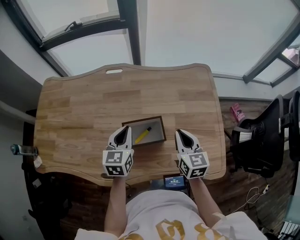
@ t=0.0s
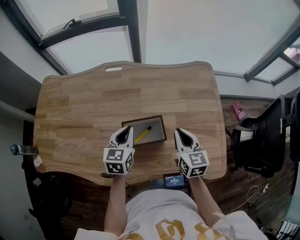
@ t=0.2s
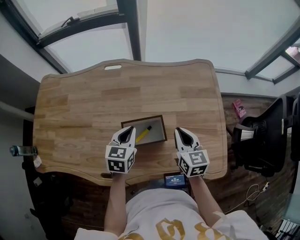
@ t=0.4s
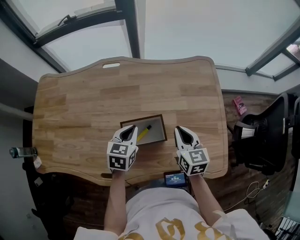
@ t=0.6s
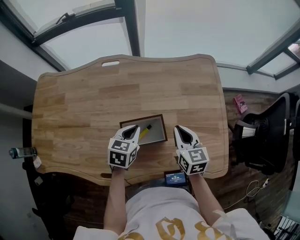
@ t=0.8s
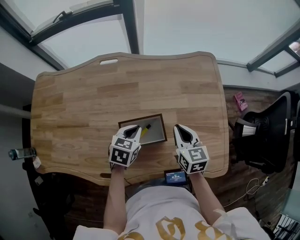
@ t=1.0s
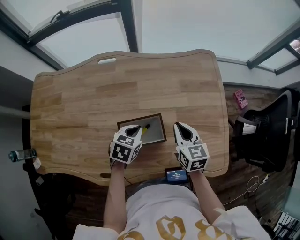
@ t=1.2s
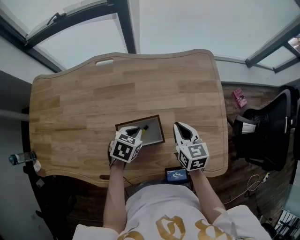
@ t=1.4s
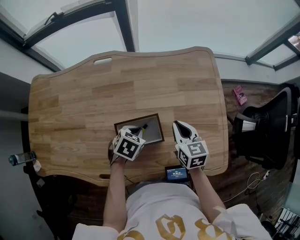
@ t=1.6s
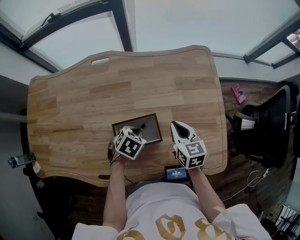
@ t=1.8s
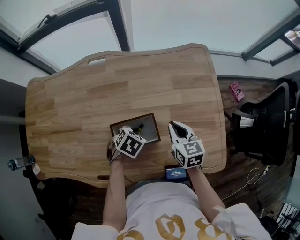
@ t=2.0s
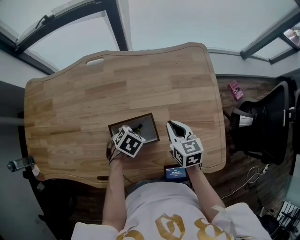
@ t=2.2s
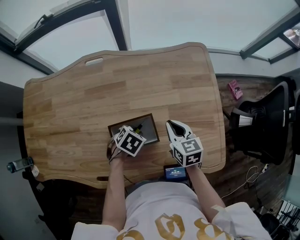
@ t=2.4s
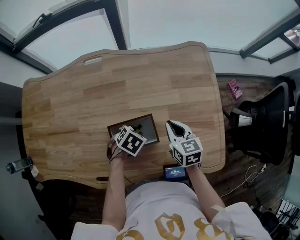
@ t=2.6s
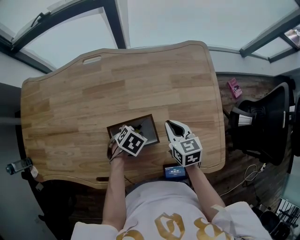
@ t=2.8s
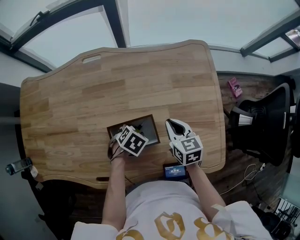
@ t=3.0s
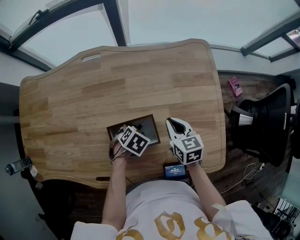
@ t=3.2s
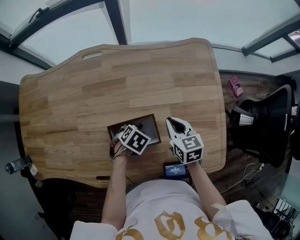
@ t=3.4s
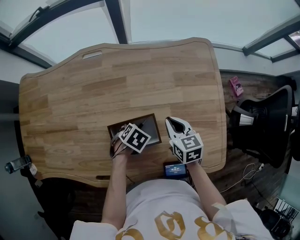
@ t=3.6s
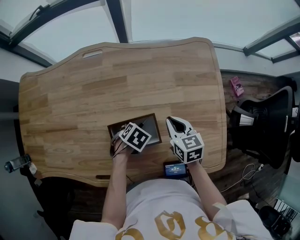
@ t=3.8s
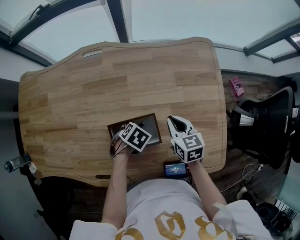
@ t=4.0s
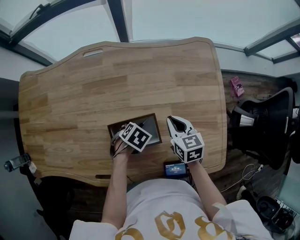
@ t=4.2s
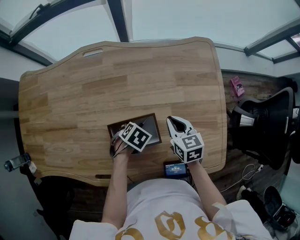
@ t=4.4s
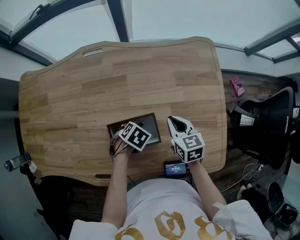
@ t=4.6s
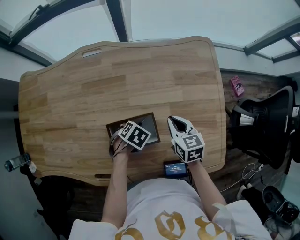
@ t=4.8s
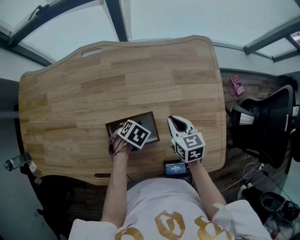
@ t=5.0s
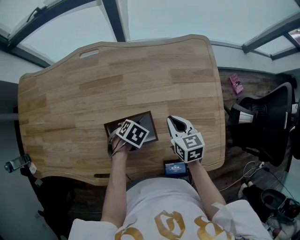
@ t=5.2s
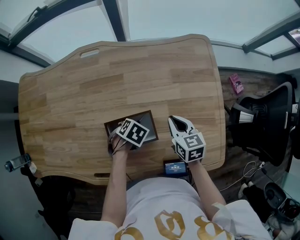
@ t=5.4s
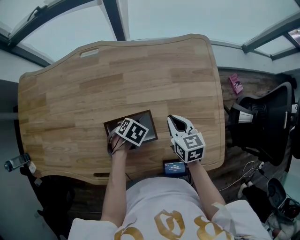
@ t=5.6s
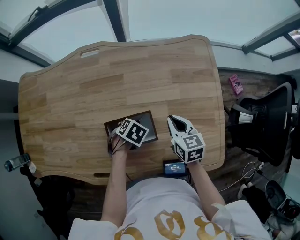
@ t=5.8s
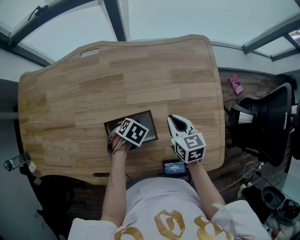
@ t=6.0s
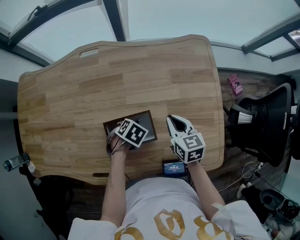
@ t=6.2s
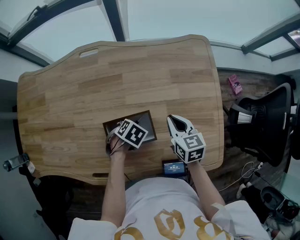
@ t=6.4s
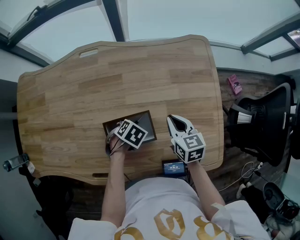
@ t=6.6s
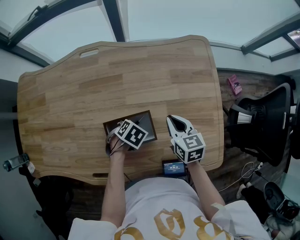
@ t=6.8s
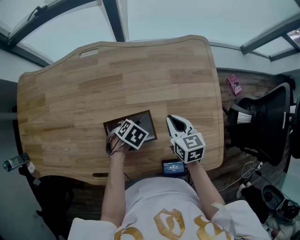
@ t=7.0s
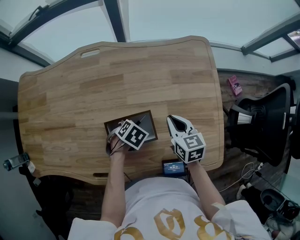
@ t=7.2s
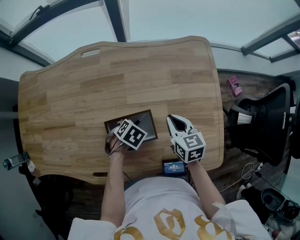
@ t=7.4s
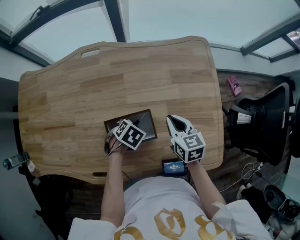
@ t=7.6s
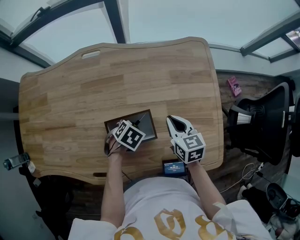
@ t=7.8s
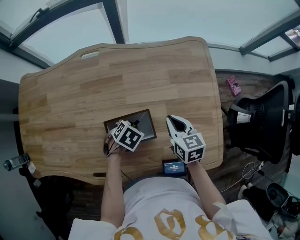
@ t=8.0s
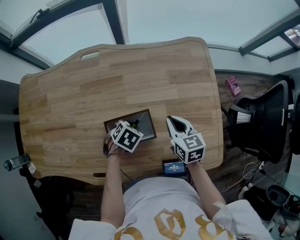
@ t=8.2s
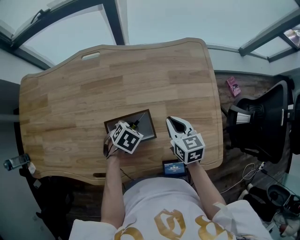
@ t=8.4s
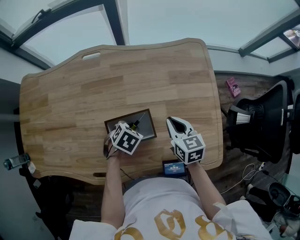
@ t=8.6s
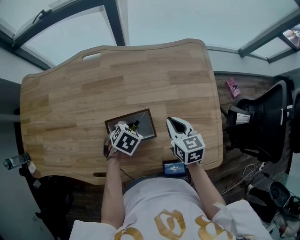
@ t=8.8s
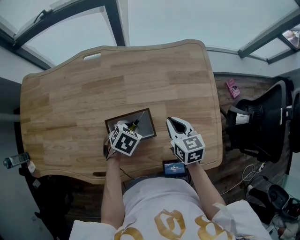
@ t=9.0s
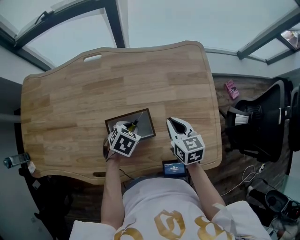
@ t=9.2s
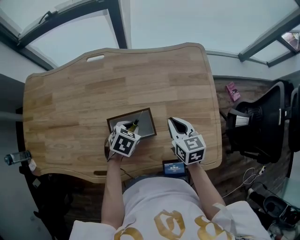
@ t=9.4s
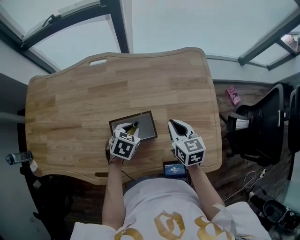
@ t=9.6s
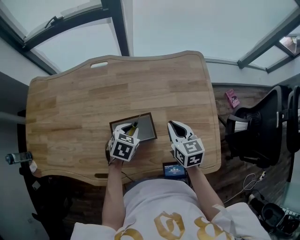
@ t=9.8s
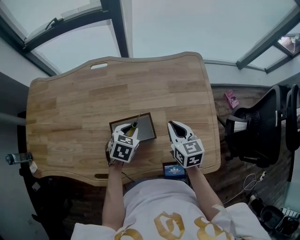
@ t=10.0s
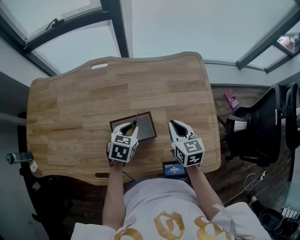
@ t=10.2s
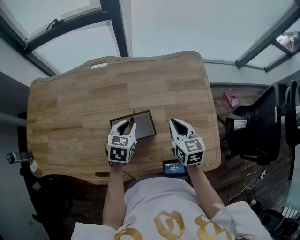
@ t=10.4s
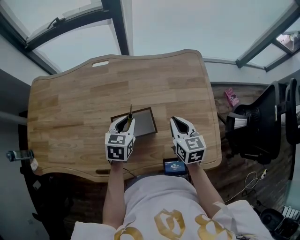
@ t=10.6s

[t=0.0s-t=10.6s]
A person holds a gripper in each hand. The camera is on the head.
t=0.0s to t=1.6s: The left gripper moves downward and to the right, some 15 cm, and tilts its fingers roughly 40 degrees downward, while the right gripper is displaced downward and forward by about 10 cm.
t=1.6s to t=3.0s: The left gripper moves some 5 cm, and opens up.
t=3.0s to t=9.0s: The grippers make only small movements.
t=9.0s to t=10.6s: The left gripper heads upward, covering roughly 10 cm, and rotates about 40 degrees. Meanwhile the right gripper goes roughly 5 cm upward.

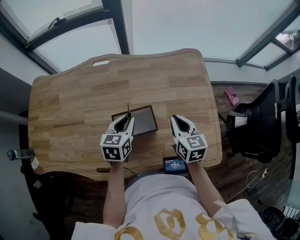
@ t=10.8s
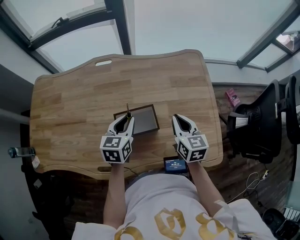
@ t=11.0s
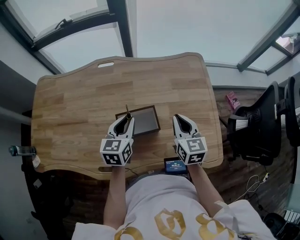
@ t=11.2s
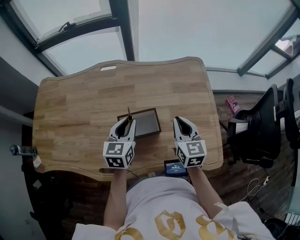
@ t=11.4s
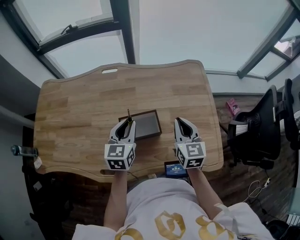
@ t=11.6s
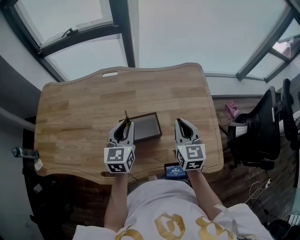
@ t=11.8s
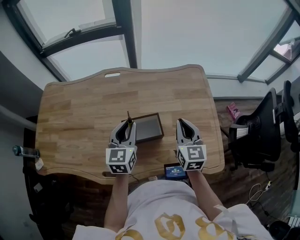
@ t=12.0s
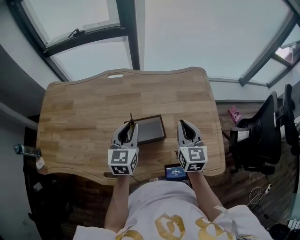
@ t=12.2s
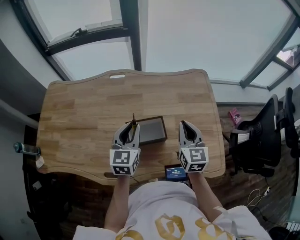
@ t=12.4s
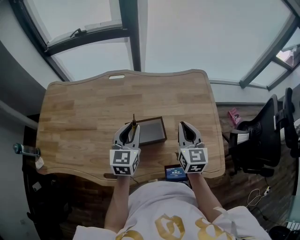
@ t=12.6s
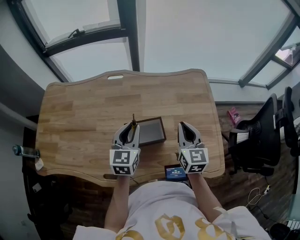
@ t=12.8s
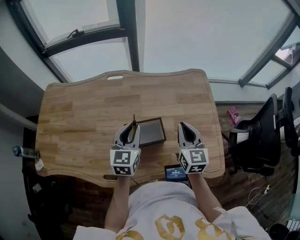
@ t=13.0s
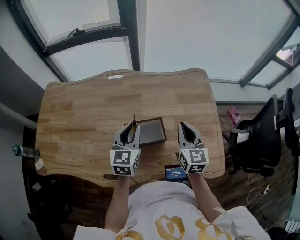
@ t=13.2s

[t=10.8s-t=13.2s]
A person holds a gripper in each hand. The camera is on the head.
t=10.8s to t=12.0s: Both grippers move upward, approximately 10 cm. The left gripper turns by roughly 20 degrees.
t=12.0s to t=13.2s: Both grippers stay put.

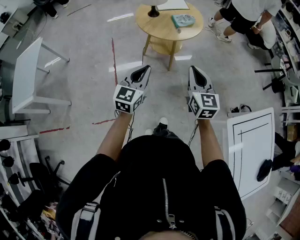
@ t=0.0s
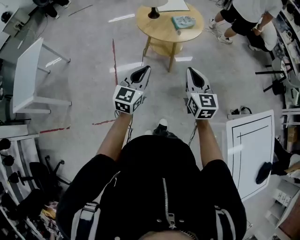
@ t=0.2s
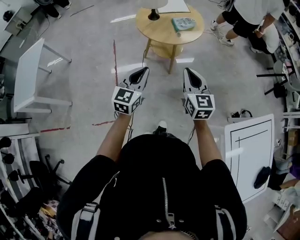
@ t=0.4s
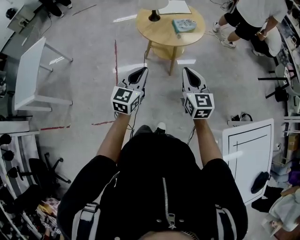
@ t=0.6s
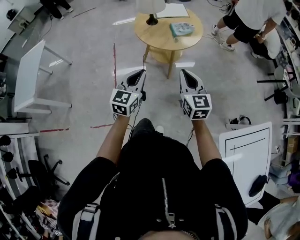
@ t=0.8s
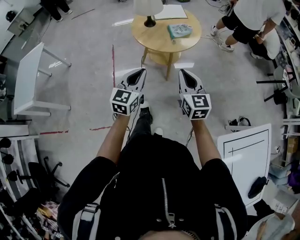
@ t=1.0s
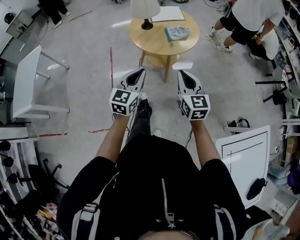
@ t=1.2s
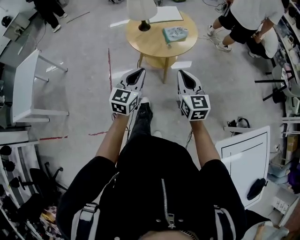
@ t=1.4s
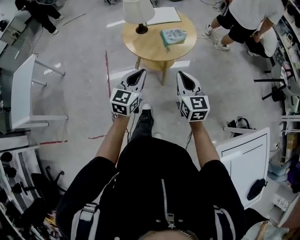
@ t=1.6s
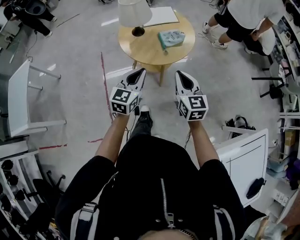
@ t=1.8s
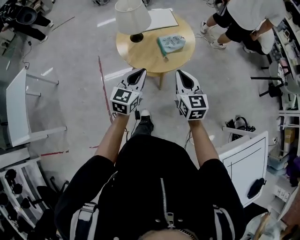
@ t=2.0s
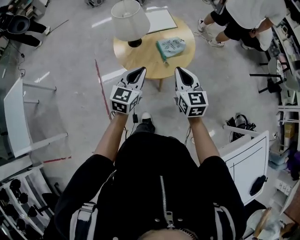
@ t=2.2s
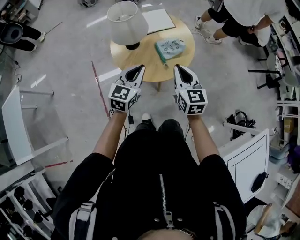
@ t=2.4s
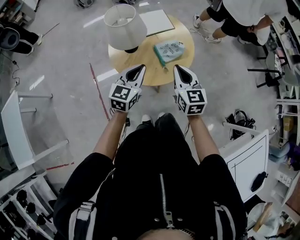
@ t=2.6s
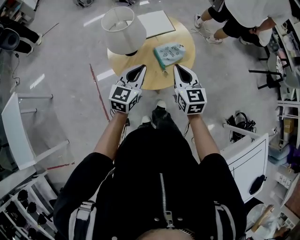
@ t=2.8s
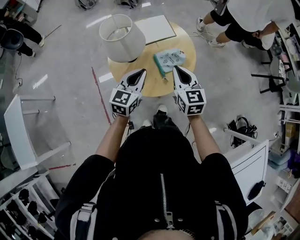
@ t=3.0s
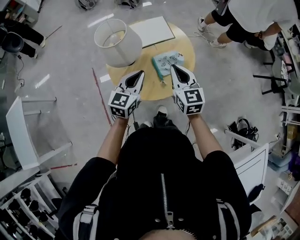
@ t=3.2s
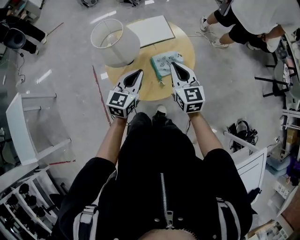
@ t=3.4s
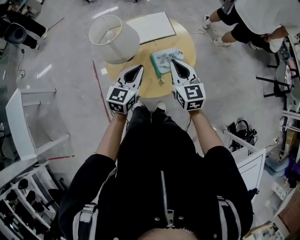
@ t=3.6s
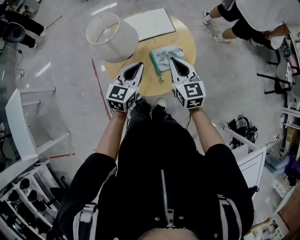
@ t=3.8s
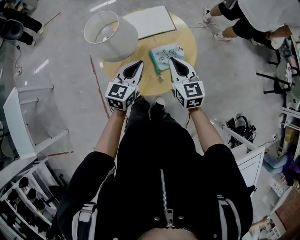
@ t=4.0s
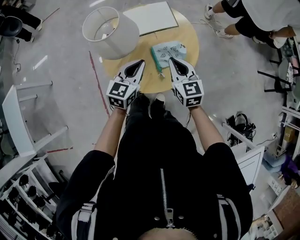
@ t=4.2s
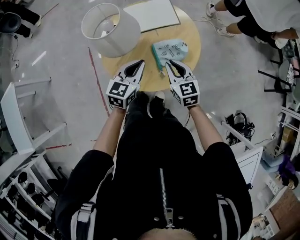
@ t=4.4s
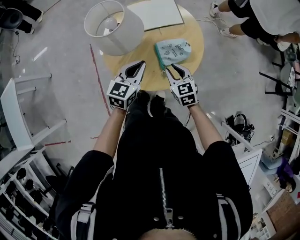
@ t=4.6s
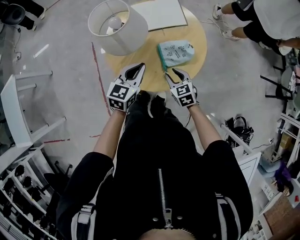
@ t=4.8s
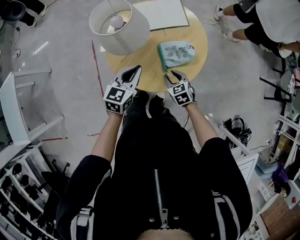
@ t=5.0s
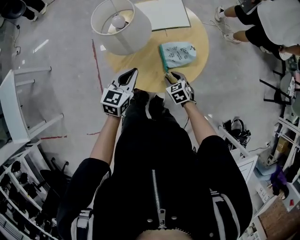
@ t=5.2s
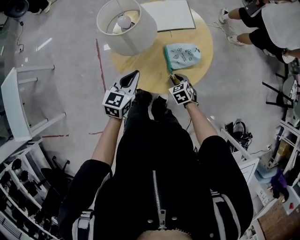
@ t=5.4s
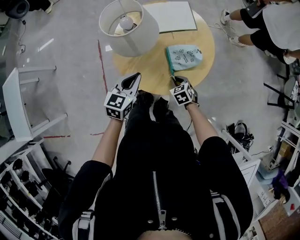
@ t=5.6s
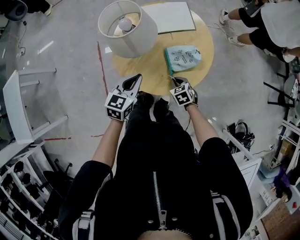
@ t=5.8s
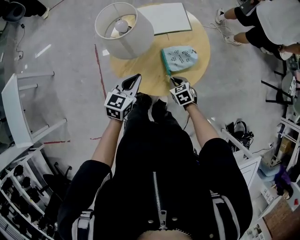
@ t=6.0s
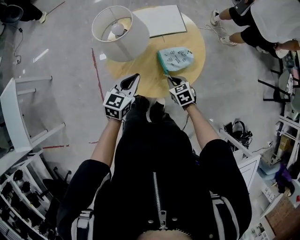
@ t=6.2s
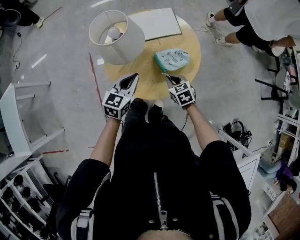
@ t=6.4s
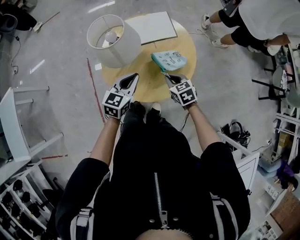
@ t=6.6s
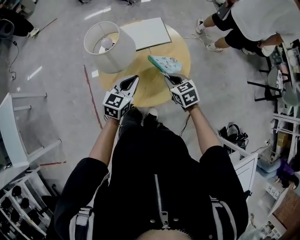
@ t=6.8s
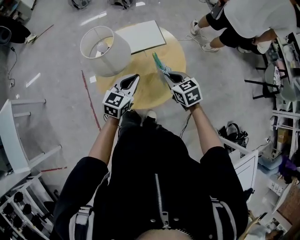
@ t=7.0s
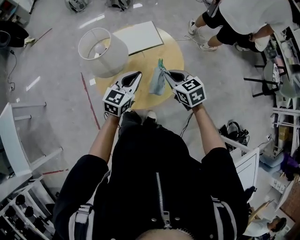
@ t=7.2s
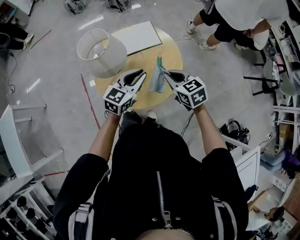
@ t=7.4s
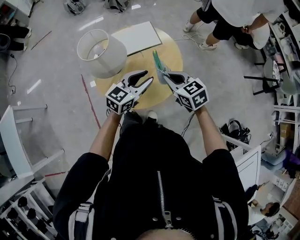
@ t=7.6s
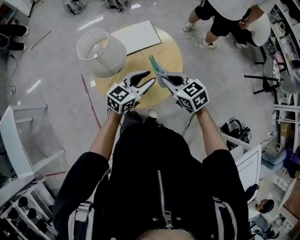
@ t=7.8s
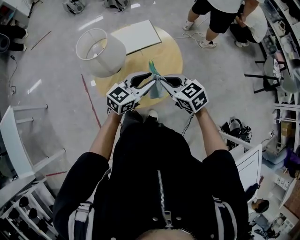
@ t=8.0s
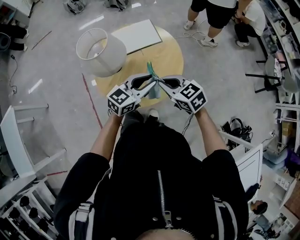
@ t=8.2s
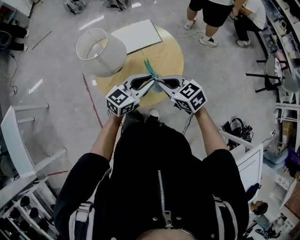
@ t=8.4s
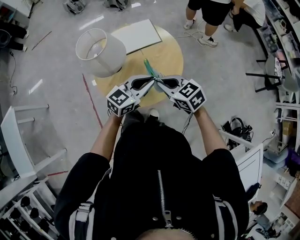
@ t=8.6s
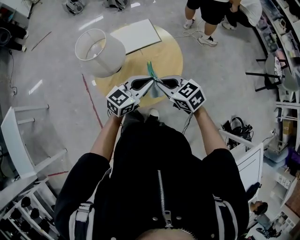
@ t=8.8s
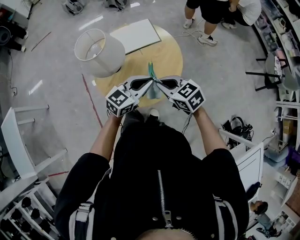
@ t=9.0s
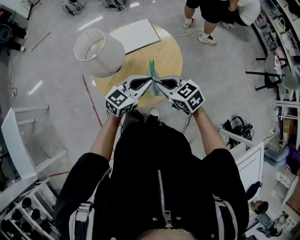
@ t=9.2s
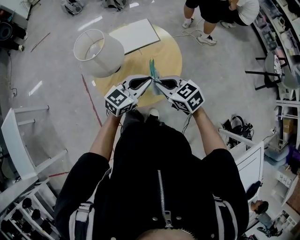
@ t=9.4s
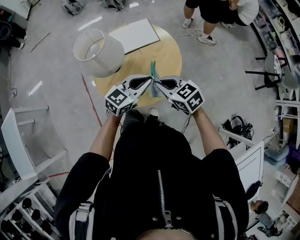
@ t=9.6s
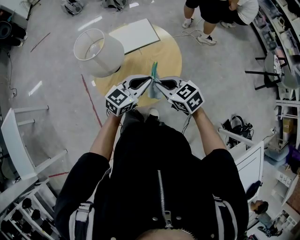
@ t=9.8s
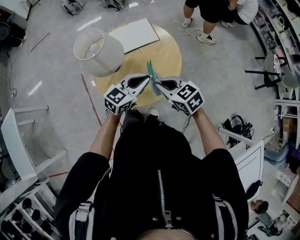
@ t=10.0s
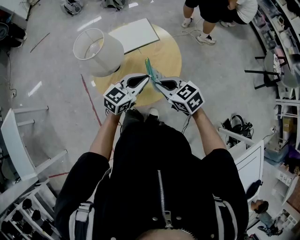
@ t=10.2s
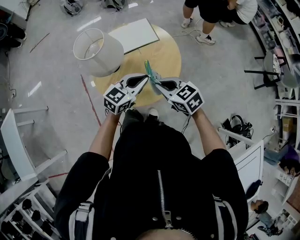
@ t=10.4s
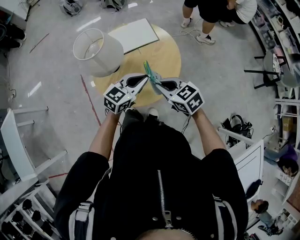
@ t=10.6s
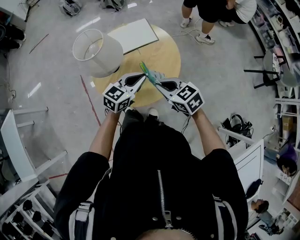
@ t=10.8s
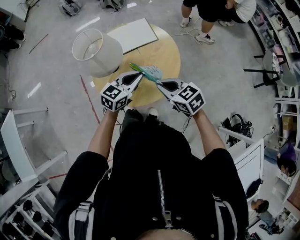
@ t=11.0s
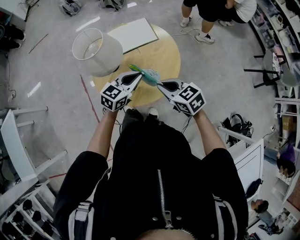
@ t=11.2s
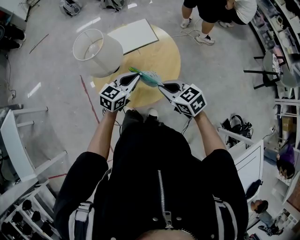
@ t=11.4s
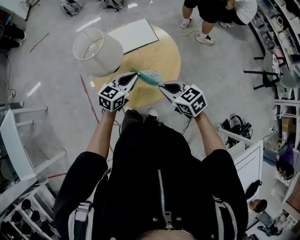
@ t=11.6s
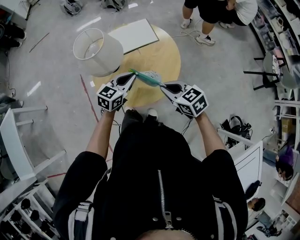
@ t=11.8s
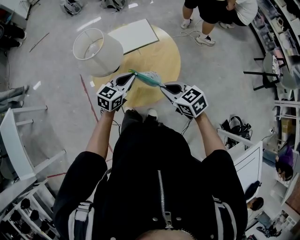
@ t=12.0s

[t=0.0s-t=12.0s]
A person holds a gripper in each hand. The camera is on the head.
t=0.0s to t=1.6s: The two grippers go roughly 15 cm forward.
t=1.6s to t=3.0s: Both grippers travel together forward, roughly 30 cm.
t=3.0s to t=4.4s: Both grippers travel together downward and forward, approximately 10 cm.
t=4.4s to t=6.0s: The right gripper heads downward, covering about 15 cm, changes its angle by about 30 degrees, and opens and closes again, while the left gripper travels to the left by approximately 5 cm.
t=6.0s to t=7.6s: The right gripper travels upward by about 25 cm, and swivels approximately 20 degrees, while the left gripper goes some 15 cm to the right and upward, swivels about 30 degrees, and opens.
t=7.6s to t=9.0s: The left gripper closes.
t=9.0s to t=10.4s: The grippers make only small movements.
t=10.4s to t=12.0s: The left gripper heads to the left, covering roughly 5 cm.
